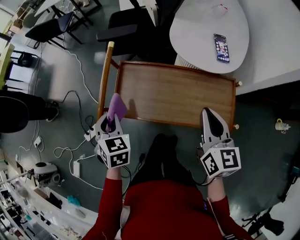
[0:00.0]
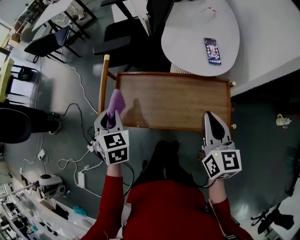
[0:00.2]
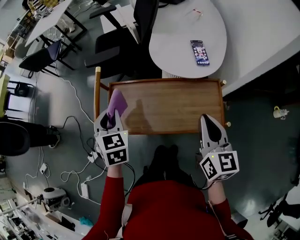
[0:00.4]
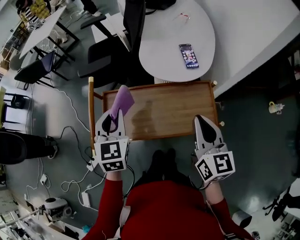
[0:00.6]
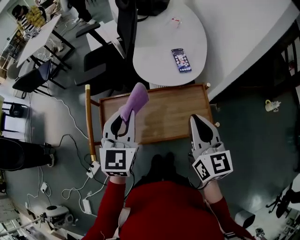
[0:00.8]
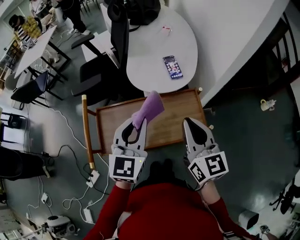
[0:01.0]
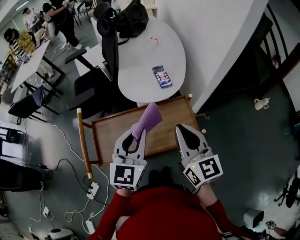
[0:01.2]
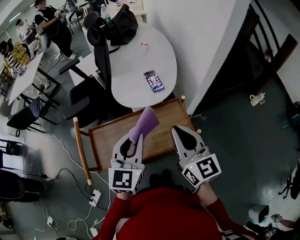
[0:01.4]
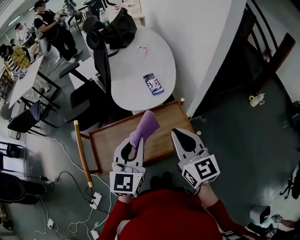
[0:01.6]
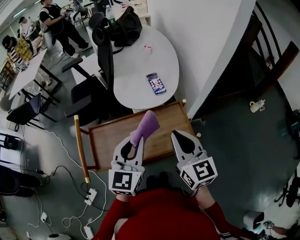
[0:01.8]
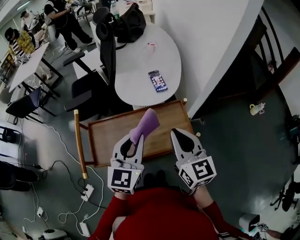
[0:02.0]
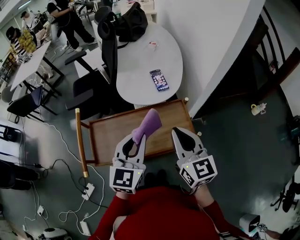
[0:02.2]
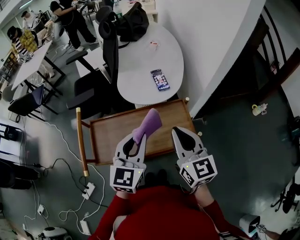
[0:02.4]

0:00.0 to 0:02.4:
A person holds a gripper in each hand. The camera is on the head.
0:00.0 to 0:01.2: The left gripper shifts by about 30 cm, and tilts its fingers approximately 30 degrees upward. The right gripper goes approximately 10 cm upward.
0:01.2 to 0:02.4: There are only small adjustments of the grippers.

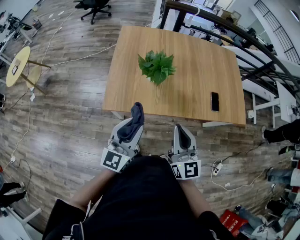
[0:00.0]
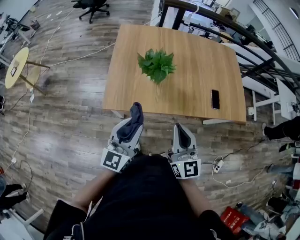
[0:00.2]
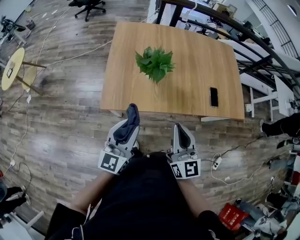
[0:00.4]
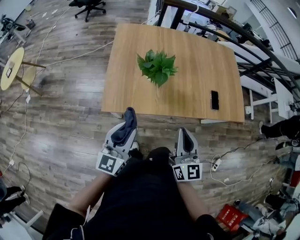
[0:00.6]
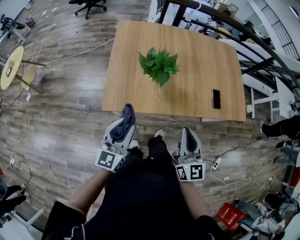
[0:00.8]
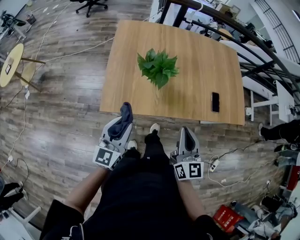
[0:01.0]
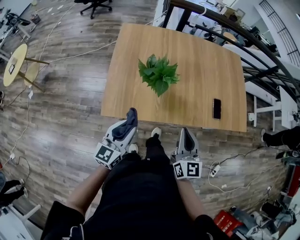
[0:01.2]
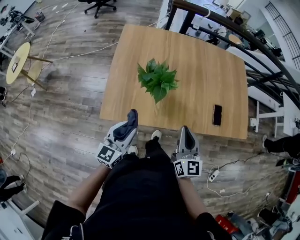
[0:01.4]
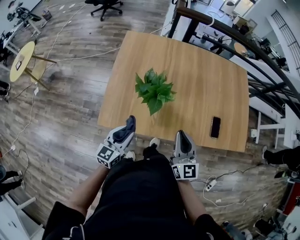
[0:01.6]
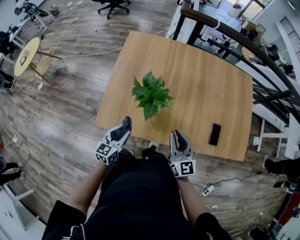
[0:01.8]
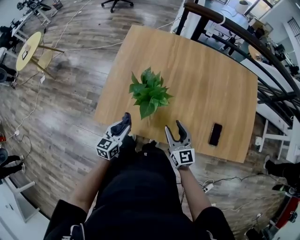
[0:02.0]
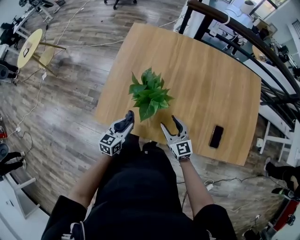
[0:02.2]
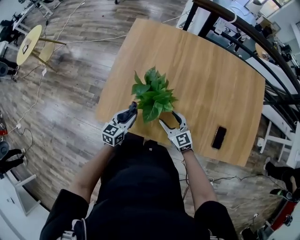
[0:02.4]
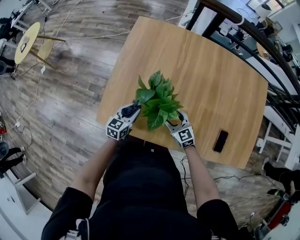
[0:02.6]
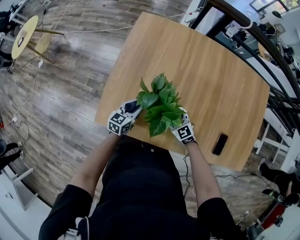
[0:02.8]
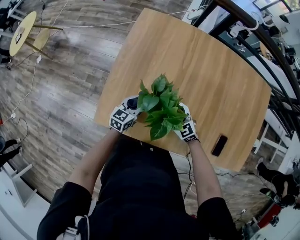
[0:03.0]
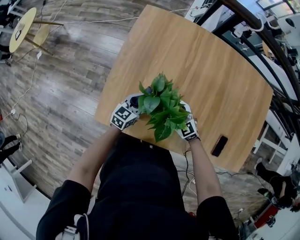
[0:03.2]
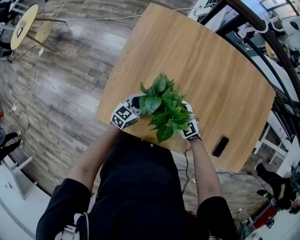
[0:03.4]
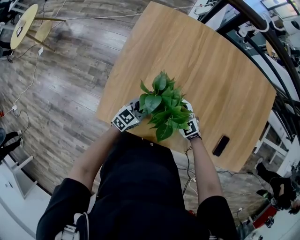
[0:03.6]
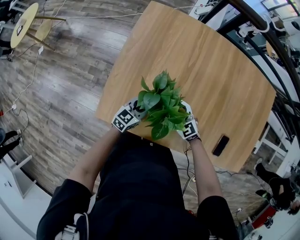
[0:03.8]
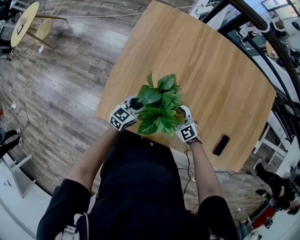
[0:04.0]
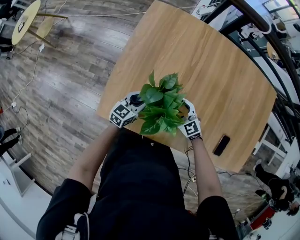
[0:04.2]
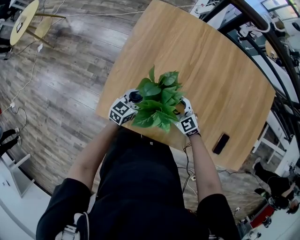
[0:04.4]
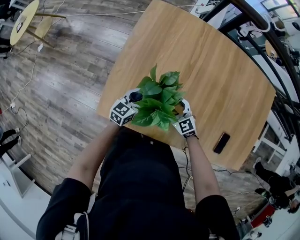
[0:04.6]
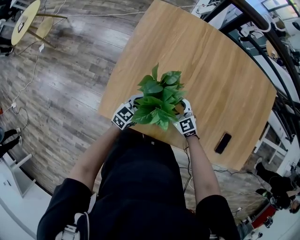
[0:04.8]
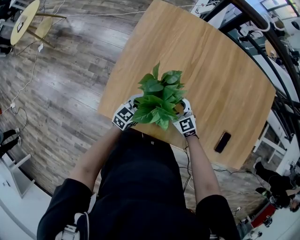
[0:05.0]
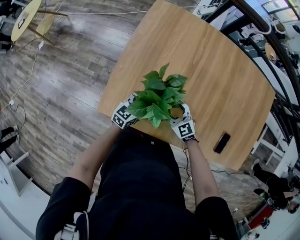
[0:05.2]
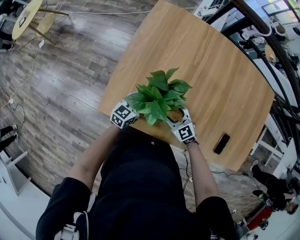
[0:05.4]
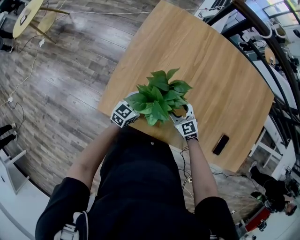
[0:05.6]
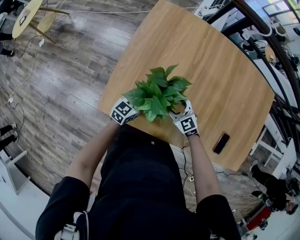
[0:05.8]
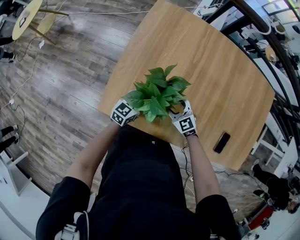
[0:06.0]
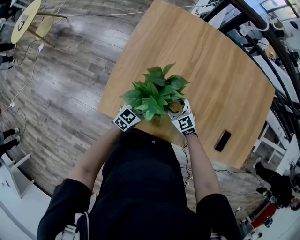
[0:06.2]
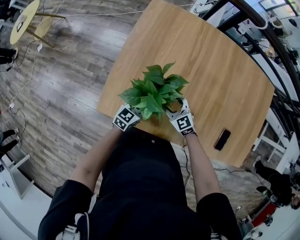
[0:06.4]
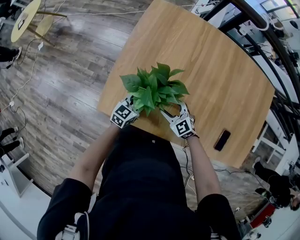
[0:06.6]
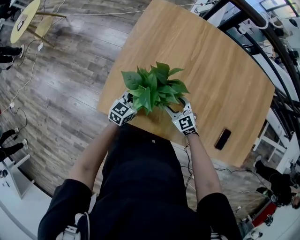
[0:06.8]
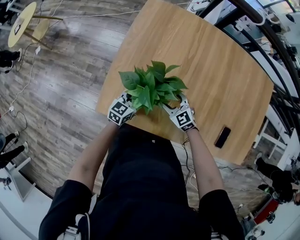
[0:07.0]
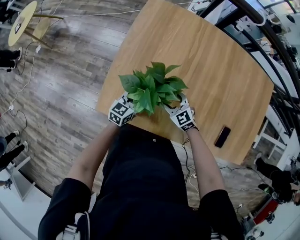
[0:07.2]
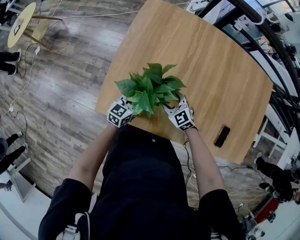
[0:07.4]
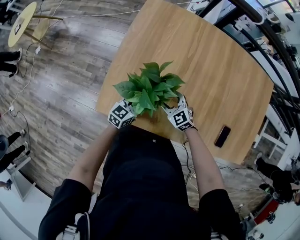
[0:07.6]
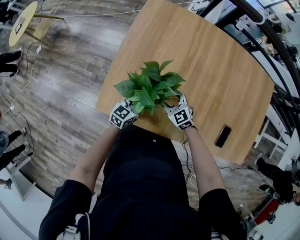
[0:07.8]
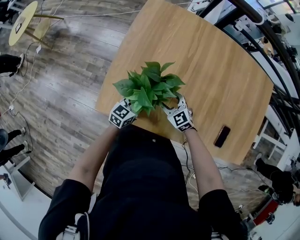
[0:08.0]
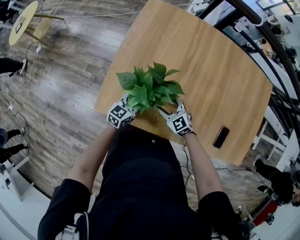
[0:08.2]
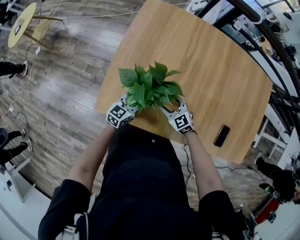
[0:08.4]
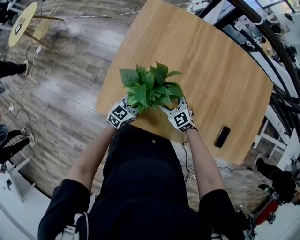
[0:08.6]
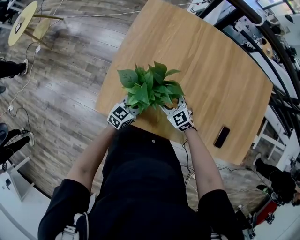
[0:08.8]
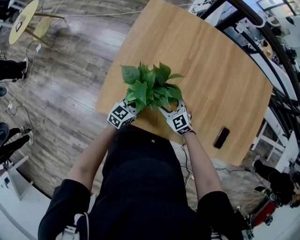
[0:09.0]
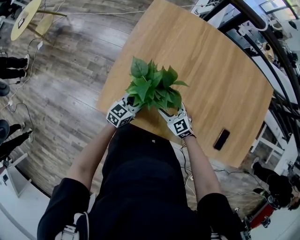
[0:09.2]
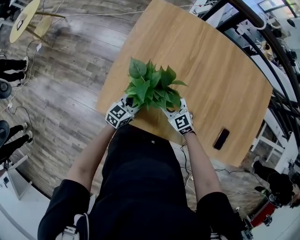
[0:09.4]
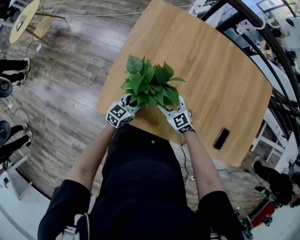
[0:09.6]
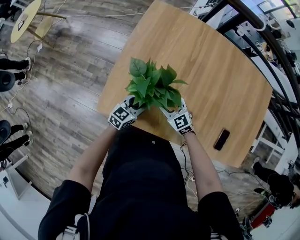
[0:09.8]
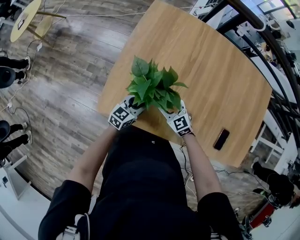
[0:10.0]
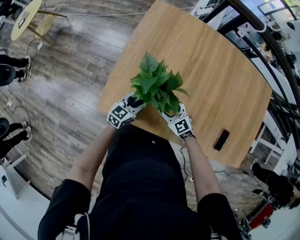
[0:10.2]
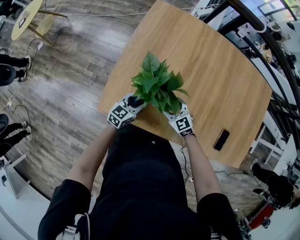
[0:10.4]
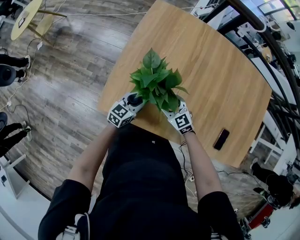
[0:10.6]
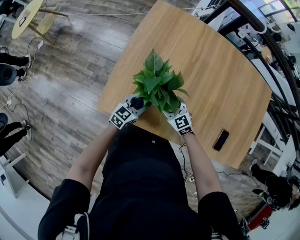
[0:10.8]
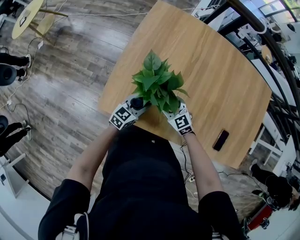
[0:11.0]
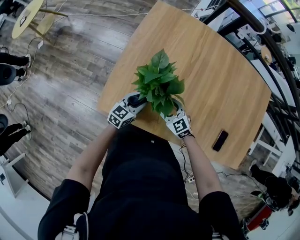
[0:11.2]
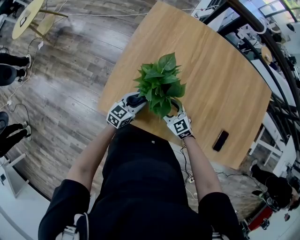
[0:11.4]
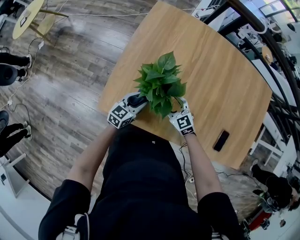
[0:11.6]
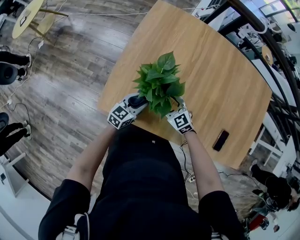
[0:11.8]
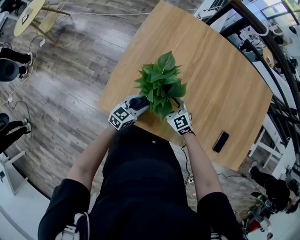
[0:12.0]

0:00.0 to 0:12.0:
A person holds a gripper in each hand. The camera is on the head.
0:00.0 to 0:01.6: The left gripper is displaced downward and forward by some 15 cm. Meanwhile the right gripper shifts approximately 15 cm forward and downward.
0:01.6 to 0:03.0: The right gripper goes some 30 cm downward and forward, changes its angle by about 50 degrees, and opens, while the left gripper moves forward and downward, about 25 cm.
0:03.0 to 0:09.0: There are only small adjustments of the grippers.
0:09.0 to 0:12.0: The grippers make only small movements.

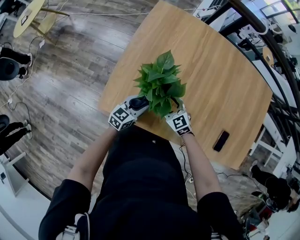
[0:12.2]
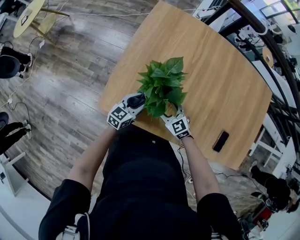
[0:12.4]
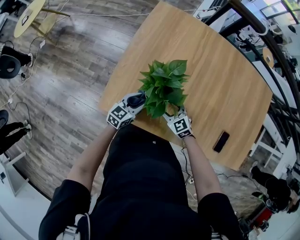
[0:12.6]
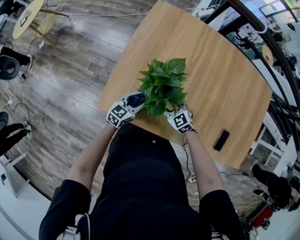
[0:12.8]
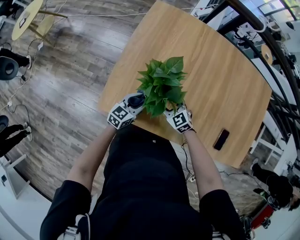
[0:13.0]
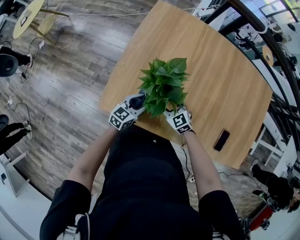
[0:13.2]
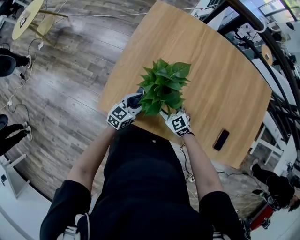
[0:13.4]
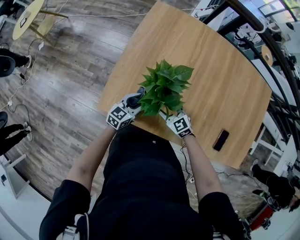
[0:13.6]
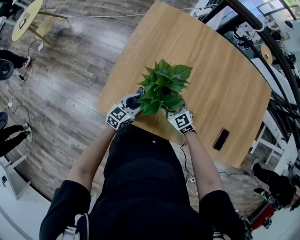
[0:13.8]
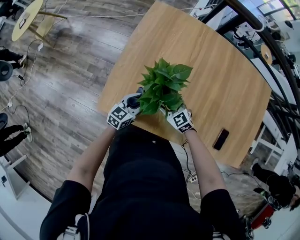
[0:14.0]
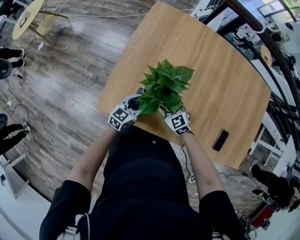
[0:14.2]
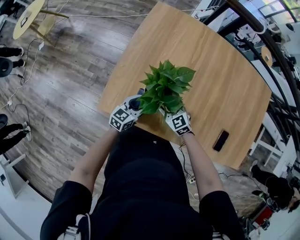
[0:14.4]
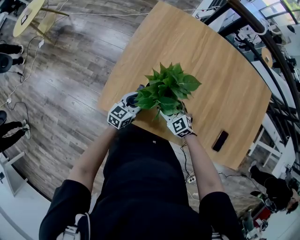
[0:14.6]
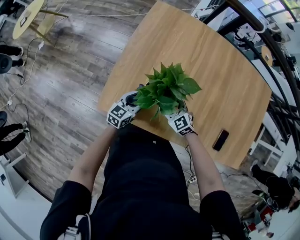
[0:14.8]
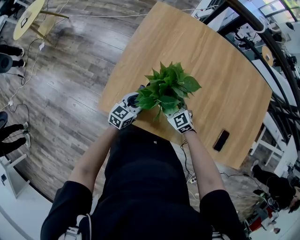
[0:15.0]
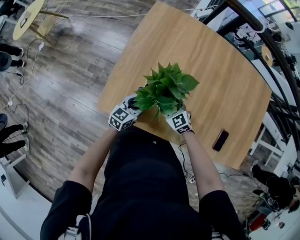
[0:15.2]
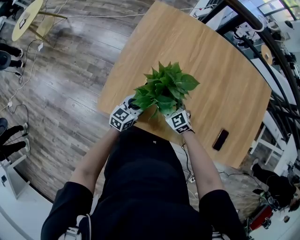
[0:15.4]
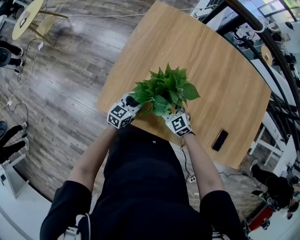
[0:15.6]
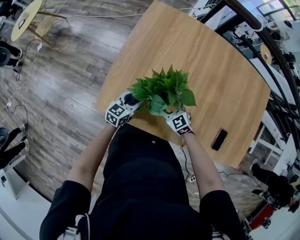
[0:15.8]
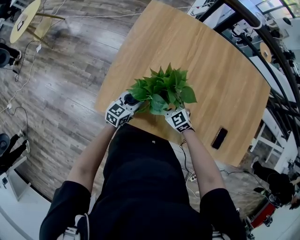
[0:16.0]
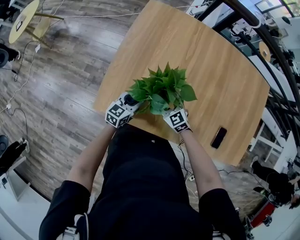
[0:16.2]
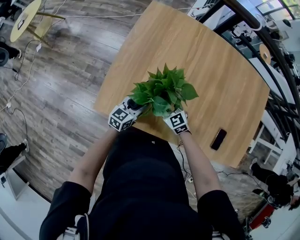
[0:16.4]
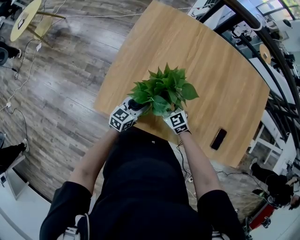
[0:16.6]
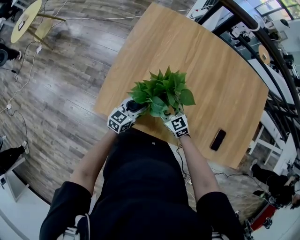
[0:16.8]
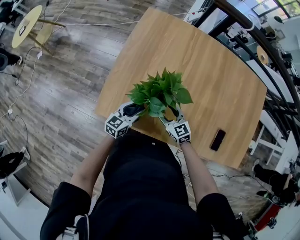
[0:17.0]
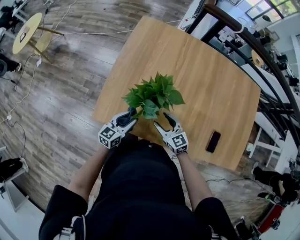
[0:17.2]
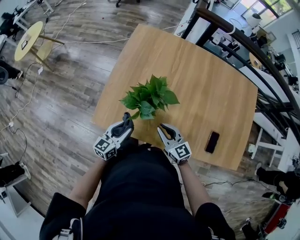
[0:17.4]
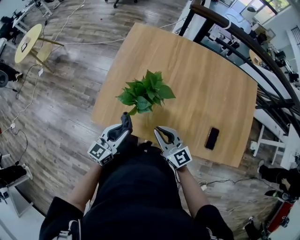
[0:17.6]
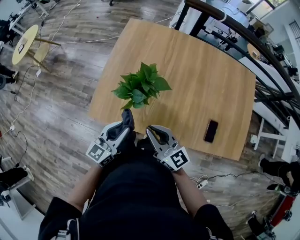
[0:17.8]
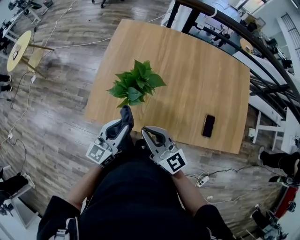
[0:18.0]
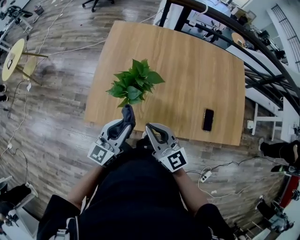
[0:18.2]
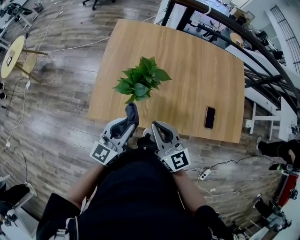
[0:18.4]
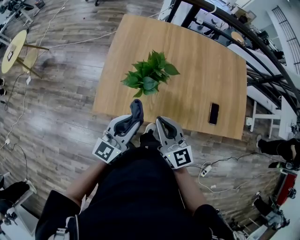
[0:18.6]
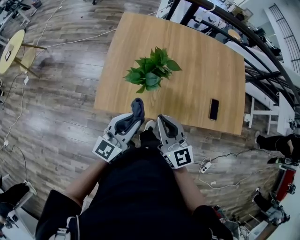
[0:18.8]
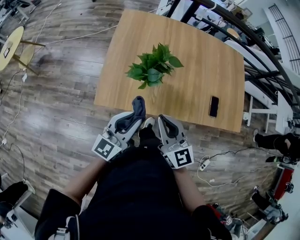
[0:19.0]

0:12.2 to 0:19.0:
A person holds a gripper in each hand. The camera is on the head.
0:12.2 to 0:16.2: The grippers stay close to where they were, moving slightly.
0:16.2 to 0:17.6: The two grippers go about 20 cm upward and backward. The right gripper rotates some 30 degrees, and closes its fingers.
0:17.6 to 0:19.0: The right gripper goes approximately 15 cm upward, backward and to the left, and changes its angle by some 20 degrees. Meanwhile the left gripper moves upward, about 10 cm.

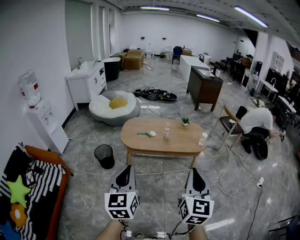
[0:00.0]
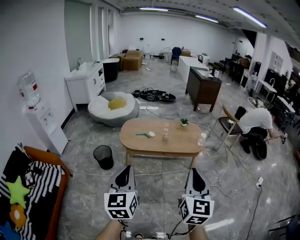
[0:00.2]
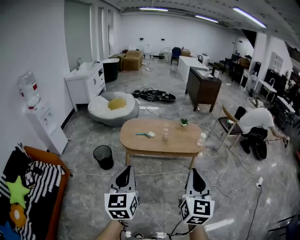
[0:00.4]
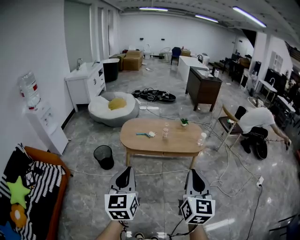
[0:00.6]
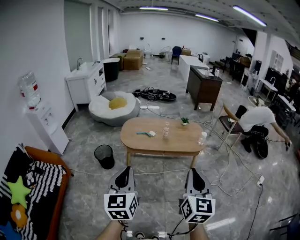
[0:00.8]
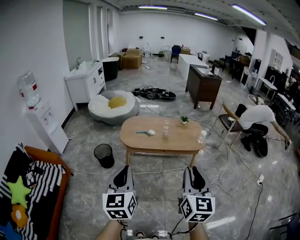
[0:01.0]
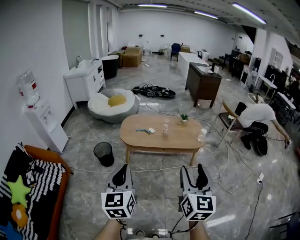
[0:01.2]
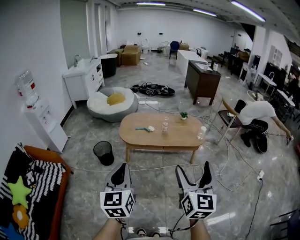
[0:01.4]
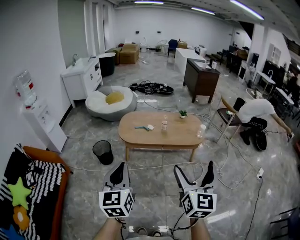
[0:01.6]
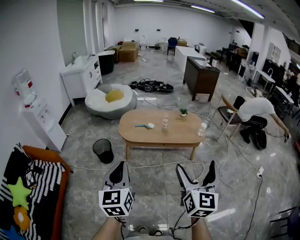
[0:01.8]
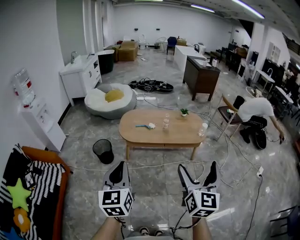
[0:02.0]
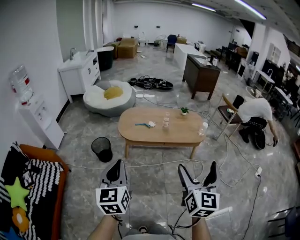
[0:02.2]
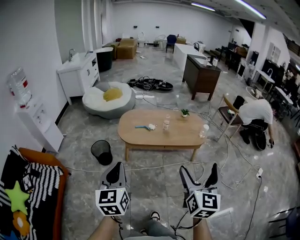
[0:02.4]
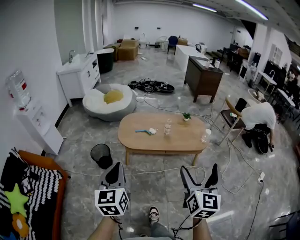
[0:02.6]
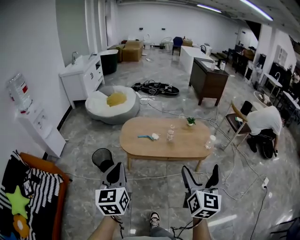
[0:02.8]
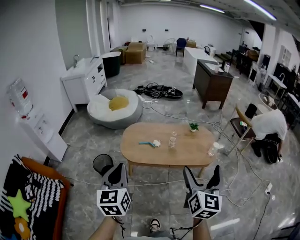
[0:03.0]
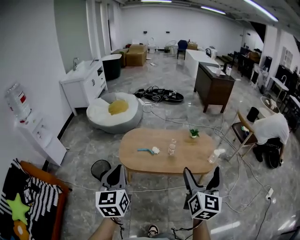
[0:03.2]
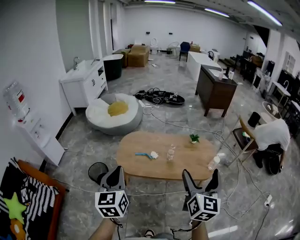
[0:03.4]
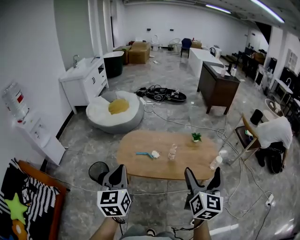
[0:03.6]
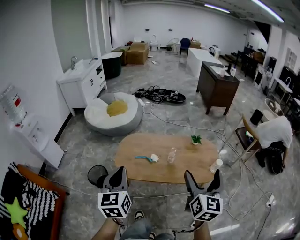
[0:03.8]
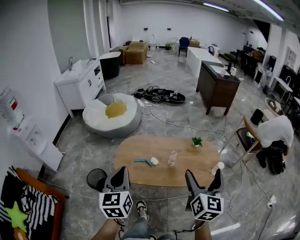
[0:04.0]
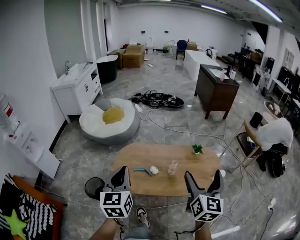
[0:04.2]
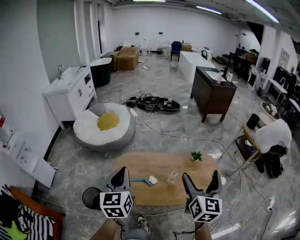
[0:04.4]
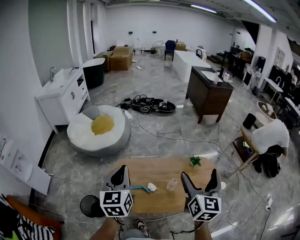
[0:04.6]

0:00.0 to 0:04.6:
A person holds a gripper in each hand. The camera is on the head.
0:00.0 to 0:01.6: The right gripper opens.
0:01.6 to 0:03.0: Both grippers move forward, about 25 cm.
0:03.0 to 0:04.6: The two grippers travel together, forward, about 40 cm.
